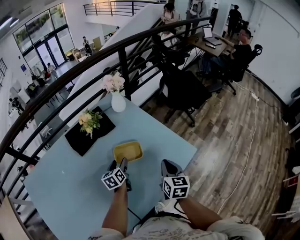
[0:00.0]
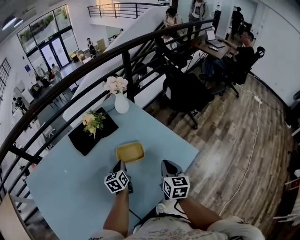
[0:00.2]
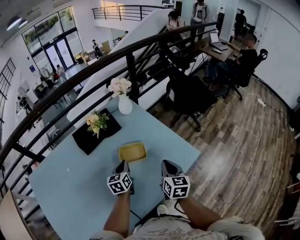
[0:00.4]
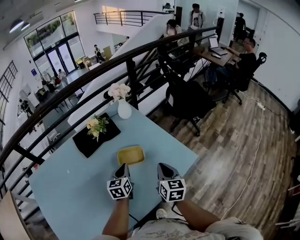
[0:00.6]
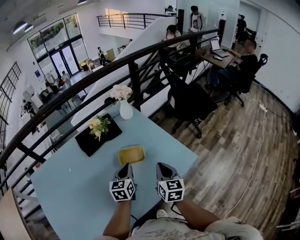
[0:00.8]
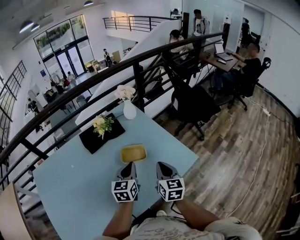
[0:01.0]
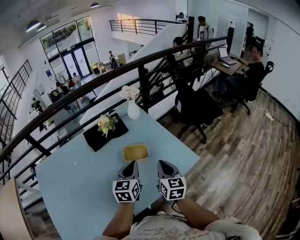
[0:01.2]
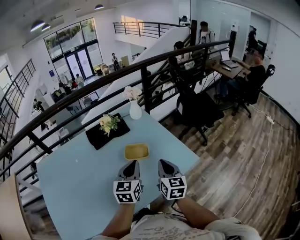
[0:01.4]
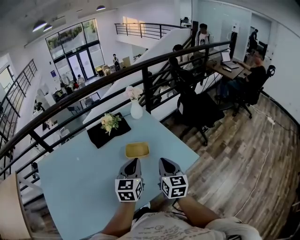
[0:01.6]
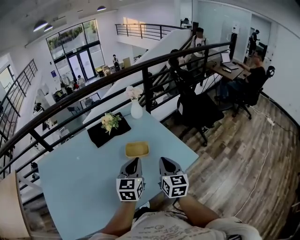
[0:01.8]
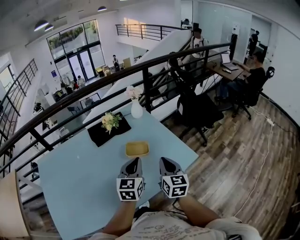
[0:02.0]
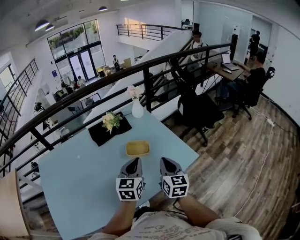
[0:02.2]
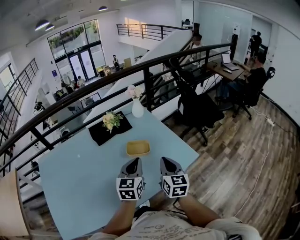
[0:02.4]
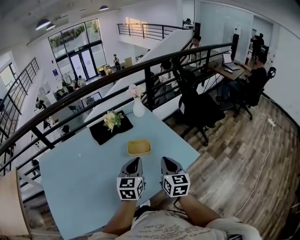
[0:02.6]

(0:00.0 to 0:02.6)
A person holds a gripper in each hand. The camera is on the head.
0:00.0 - 0:01.2: The left gripper moves upward, backward and to the right, roughly 25 cm, rotates some 30 degrees, and closes its fingers, while the right gripper travels upward by approximately 5 cm.
0:01.2 - 0:02.6: The left gripper travels backward by some 5 cm. Meanwhile the right gripper shifts by approximately 5 cm.

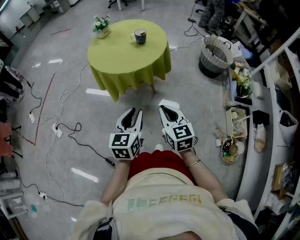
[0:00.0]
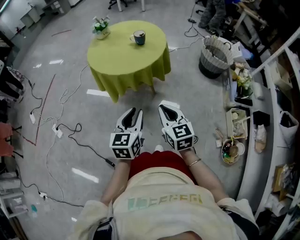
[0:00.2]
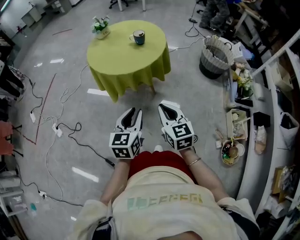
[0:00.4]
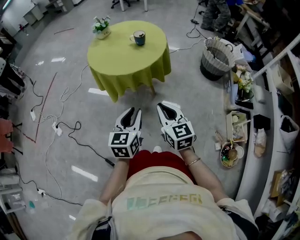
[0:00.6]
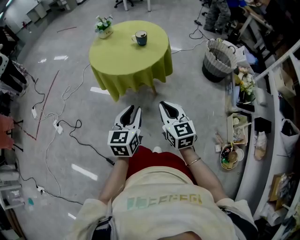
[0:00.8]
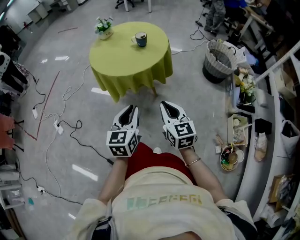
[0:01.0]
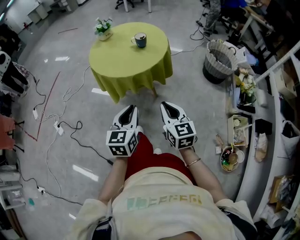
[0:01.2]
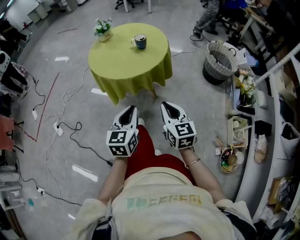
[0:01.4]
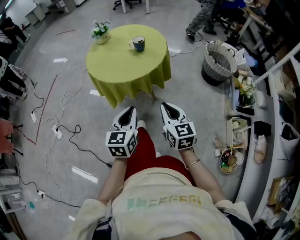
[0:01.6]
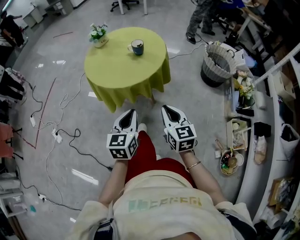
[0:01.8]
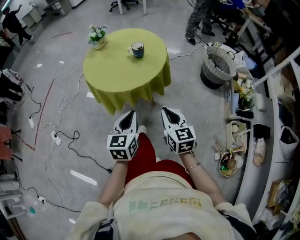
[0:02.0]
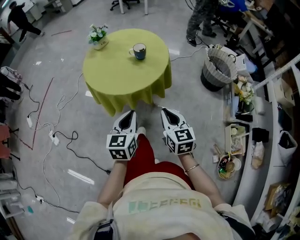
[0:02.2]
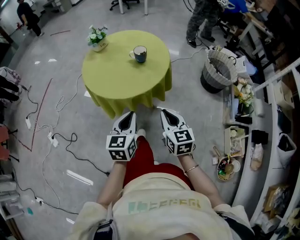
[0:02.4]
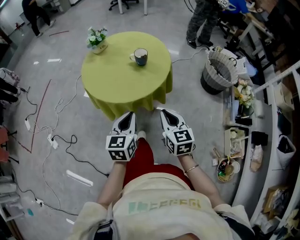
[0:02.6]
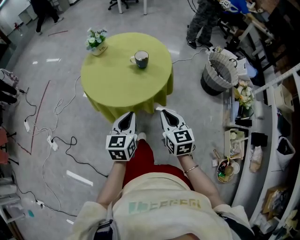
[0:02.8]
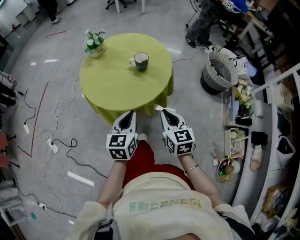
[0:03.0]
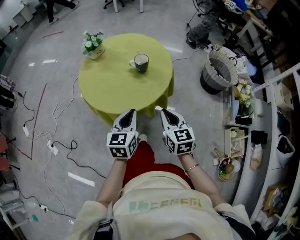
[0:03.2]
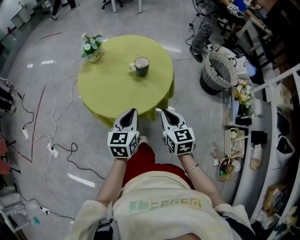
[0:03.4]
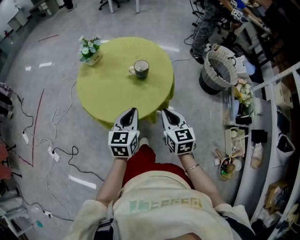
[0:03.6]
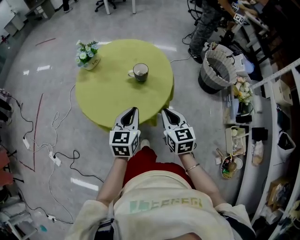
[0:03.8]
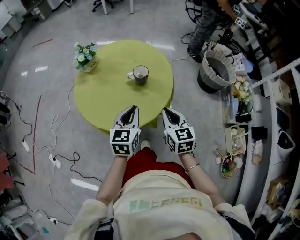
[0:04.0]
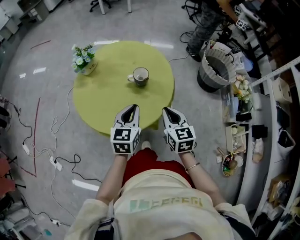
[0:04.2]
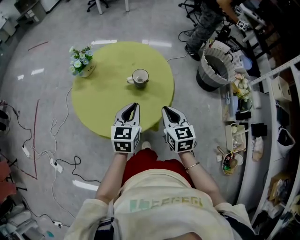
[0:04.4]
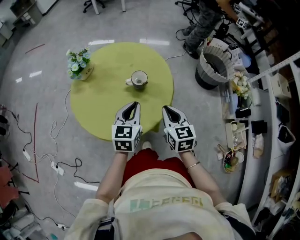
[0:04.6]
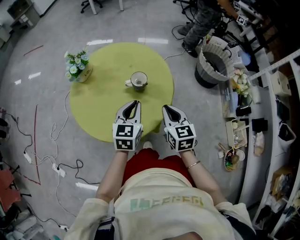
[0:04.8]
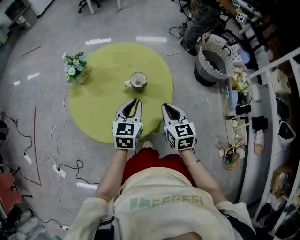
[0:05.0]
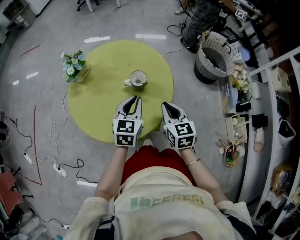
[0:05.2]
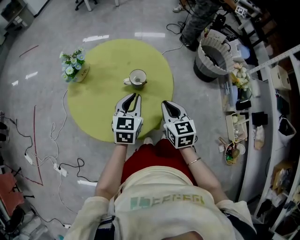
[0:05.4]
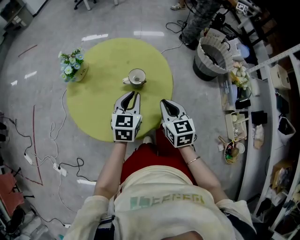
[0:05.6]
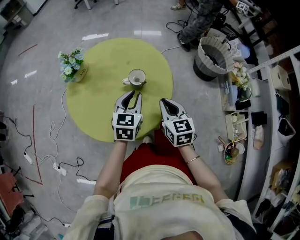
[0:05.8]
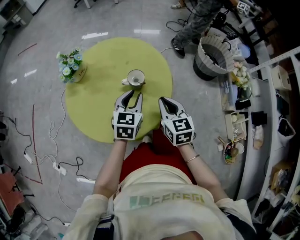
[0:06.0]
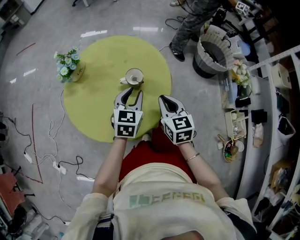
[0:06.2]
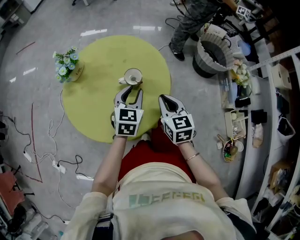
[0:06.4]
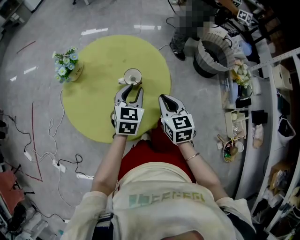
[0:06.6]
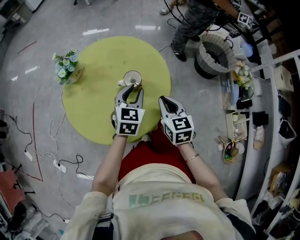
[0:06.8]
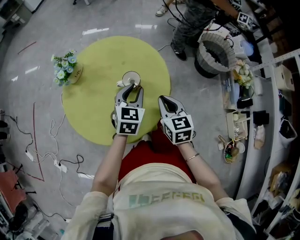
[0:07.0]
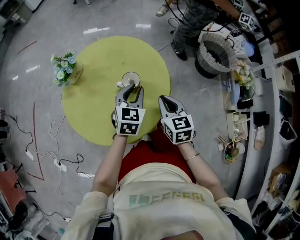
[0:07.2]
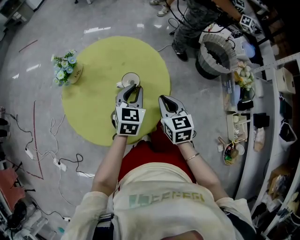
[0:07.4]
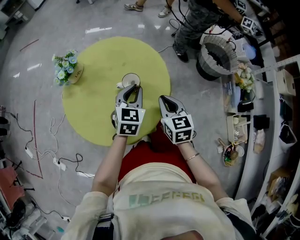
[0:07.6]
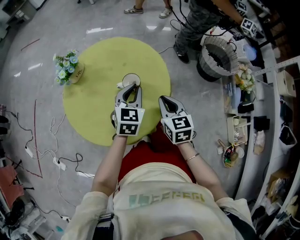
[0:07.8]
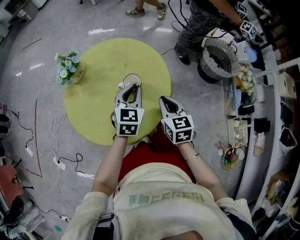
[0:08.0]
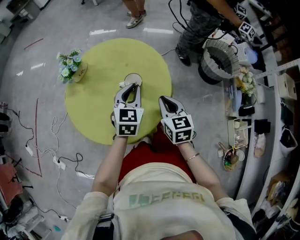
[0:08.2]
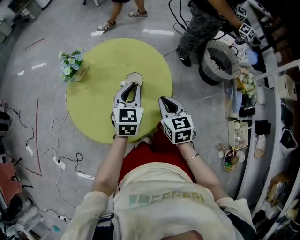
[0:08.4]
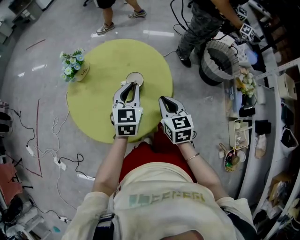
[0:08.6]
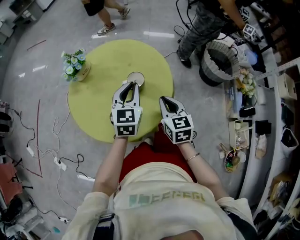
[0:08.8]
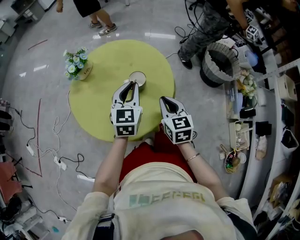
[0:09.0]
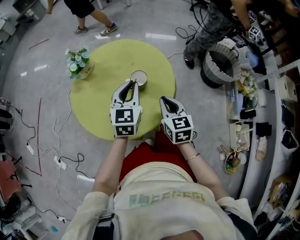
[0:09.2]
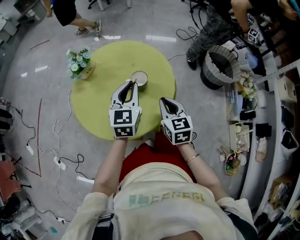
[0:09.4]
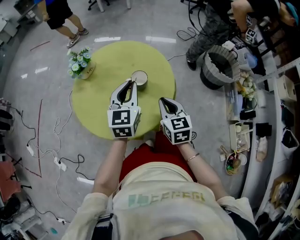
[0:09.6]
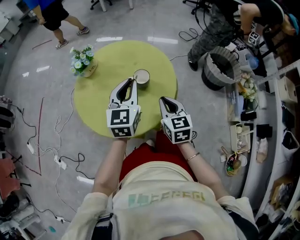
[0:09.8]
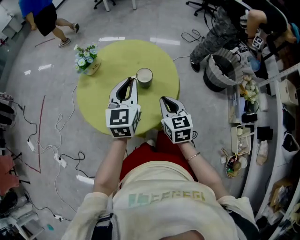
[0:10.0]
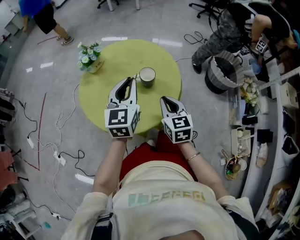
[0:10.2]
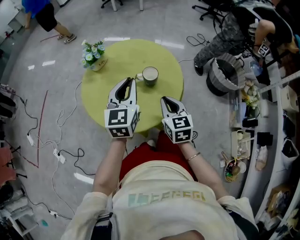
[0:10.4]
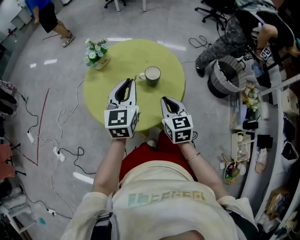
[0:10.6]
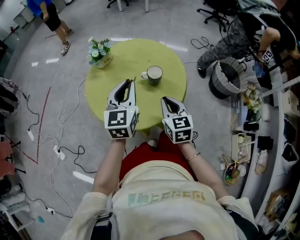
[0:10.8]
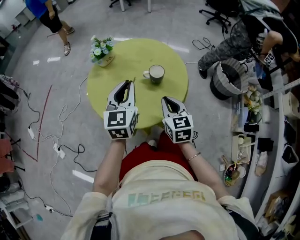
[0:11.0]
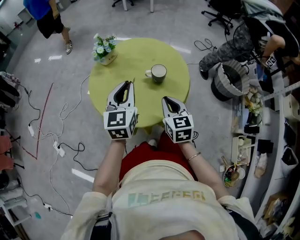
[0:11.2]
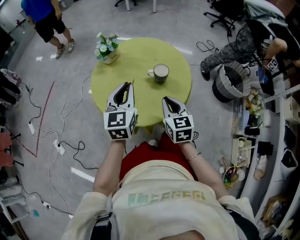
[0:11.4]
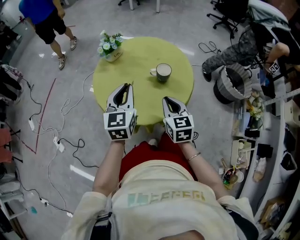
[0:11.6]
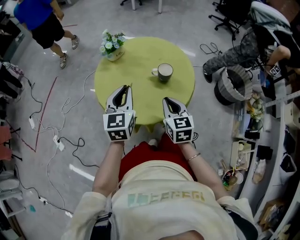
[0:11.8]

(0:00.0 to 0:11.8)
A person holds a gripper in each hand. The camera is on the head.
0:00.0 - 0:01.4: The right gripper heads to the right and forward, covering some 10 cm, while the left gripper shifts by approximately 5 cm.
0:01.4 - 0:03.0: The two grippers go roughly 20 cm forward.
0:03.0 - 0:04.4: Both grippers move forward, about 15 cm.
0:04.4 - 0:06.0: The two grippers go about 5 cm forward.
0:06.0 - 0:07.4: The left gripper moves some 5 cm, while the right gripper ends up some 5 cm from where it was.
0:07.4 - 0:08.8: The left gripper goes about 5 cm upward.
0:08.8 - 0:10.4: The left gripper travels upward, to the left and backward by approximately 10 cm, while the right gripper travels to the left by about 5 cm.
0:10.4 - 0:11.8: The left gripper goes some 10 cm to the left and backward, while the right gripper is displaced to the left by about 5 cm.

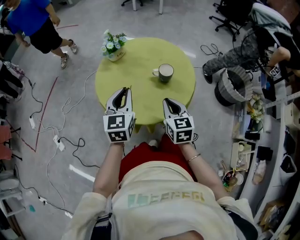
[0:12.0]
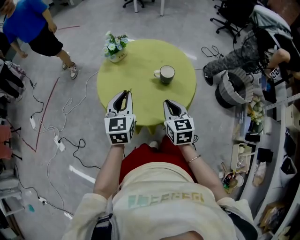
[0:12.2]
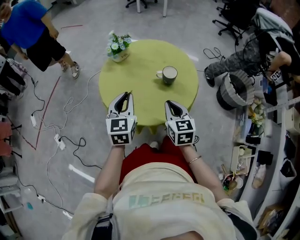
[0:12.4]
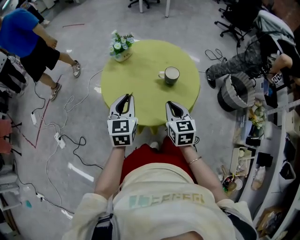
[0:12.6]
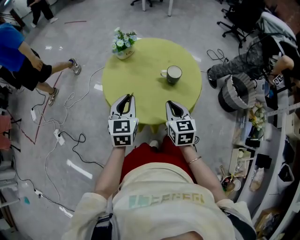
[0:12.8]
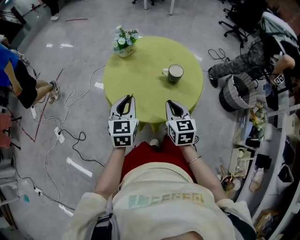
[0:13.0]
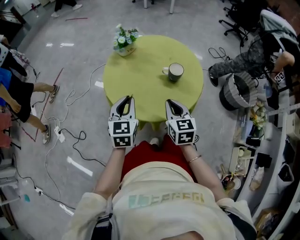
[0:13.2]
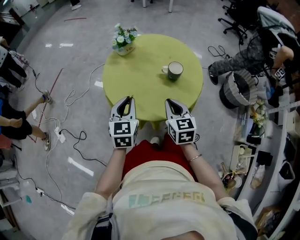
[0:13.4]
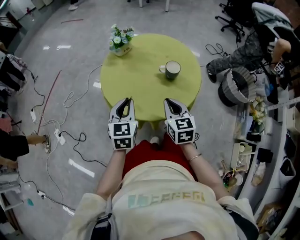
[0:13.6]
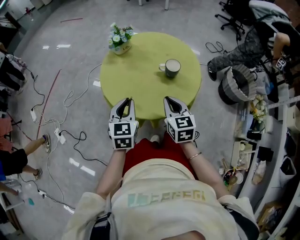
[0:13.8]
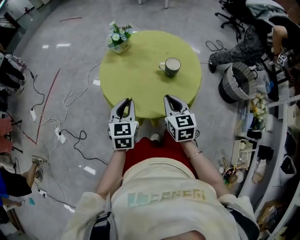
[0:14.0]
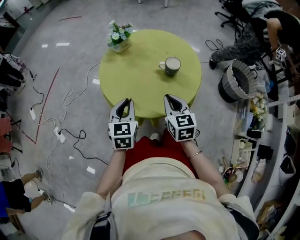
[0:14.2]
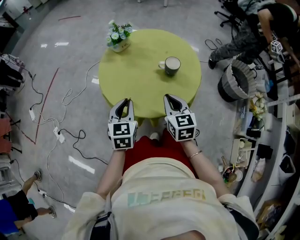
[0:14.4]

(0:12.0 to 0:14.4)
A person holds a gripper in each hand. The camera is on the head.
0:12.0 - 0:13.2: The left gripper shifts by some 5 cm.
0:13.2 - 0:14.4: The grippers make only small movements.

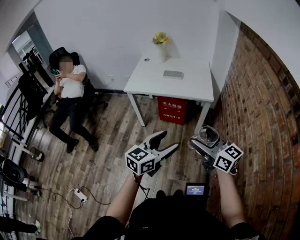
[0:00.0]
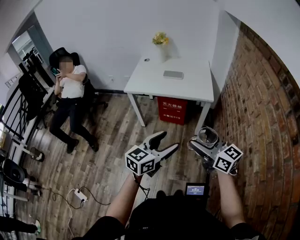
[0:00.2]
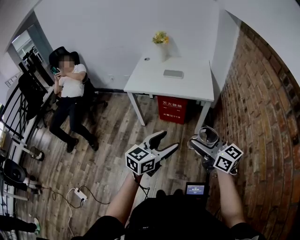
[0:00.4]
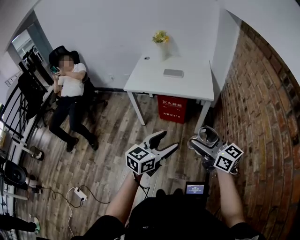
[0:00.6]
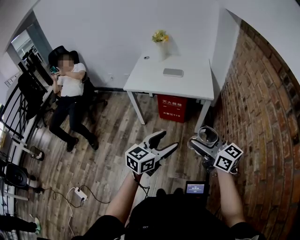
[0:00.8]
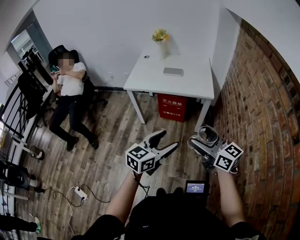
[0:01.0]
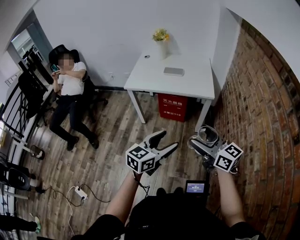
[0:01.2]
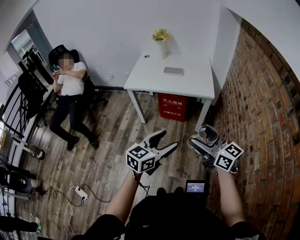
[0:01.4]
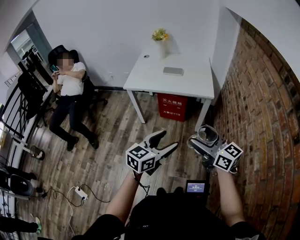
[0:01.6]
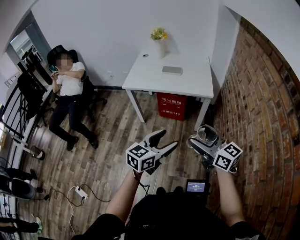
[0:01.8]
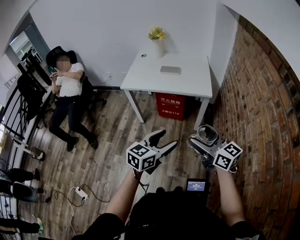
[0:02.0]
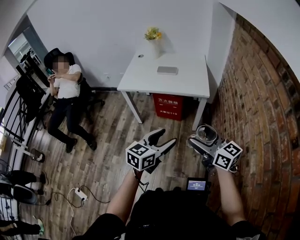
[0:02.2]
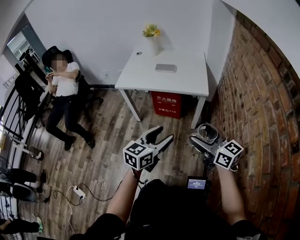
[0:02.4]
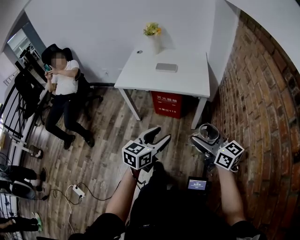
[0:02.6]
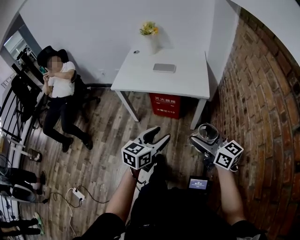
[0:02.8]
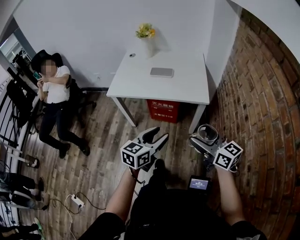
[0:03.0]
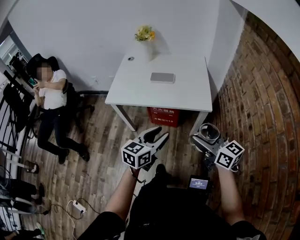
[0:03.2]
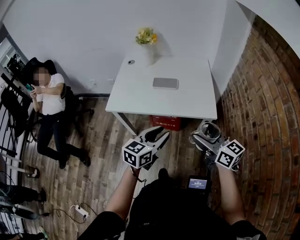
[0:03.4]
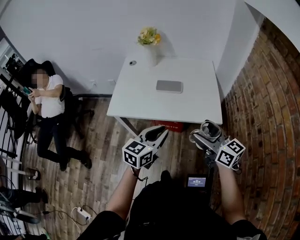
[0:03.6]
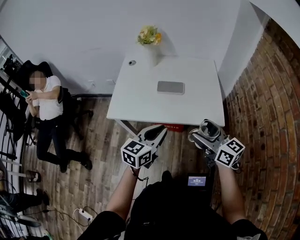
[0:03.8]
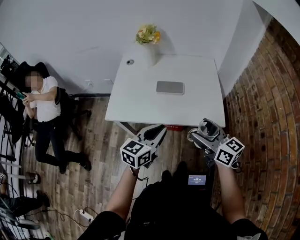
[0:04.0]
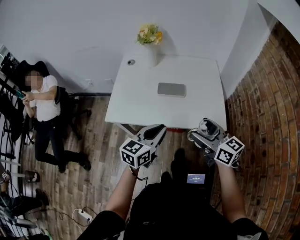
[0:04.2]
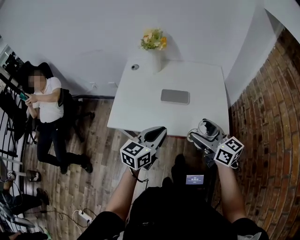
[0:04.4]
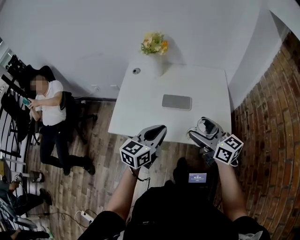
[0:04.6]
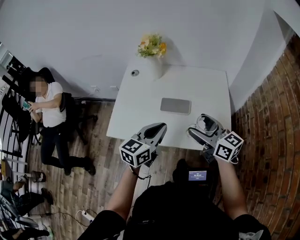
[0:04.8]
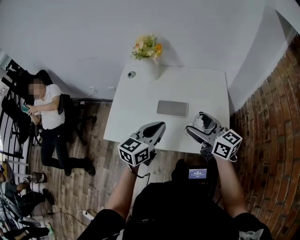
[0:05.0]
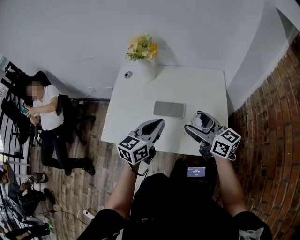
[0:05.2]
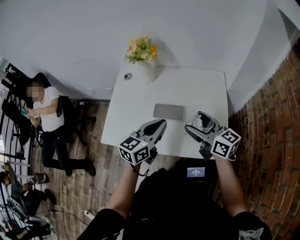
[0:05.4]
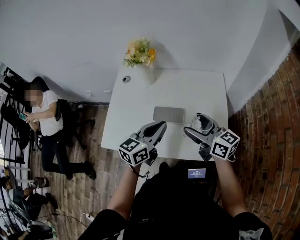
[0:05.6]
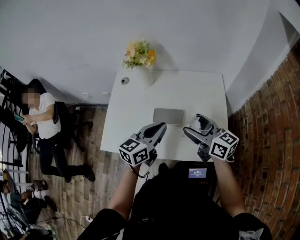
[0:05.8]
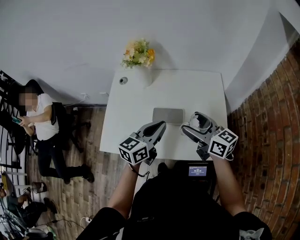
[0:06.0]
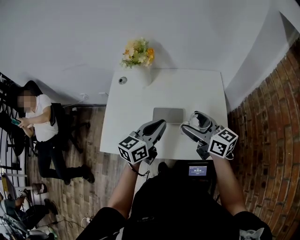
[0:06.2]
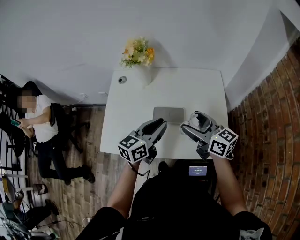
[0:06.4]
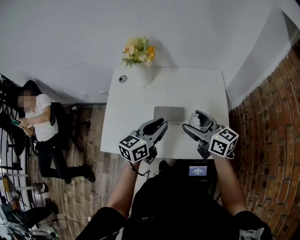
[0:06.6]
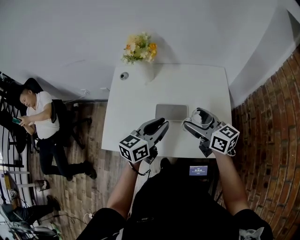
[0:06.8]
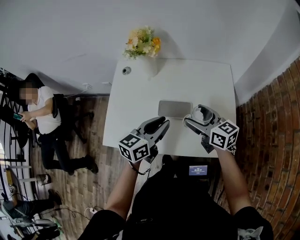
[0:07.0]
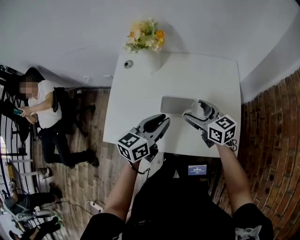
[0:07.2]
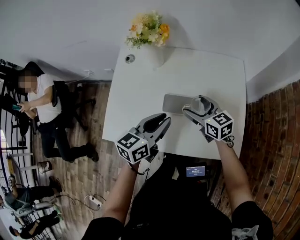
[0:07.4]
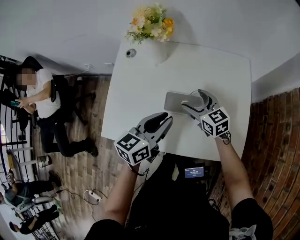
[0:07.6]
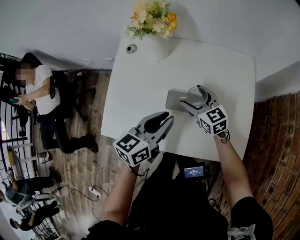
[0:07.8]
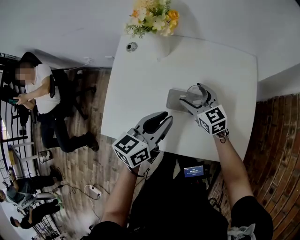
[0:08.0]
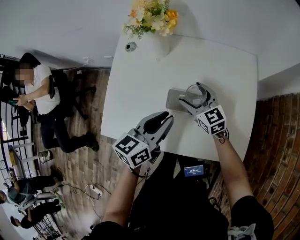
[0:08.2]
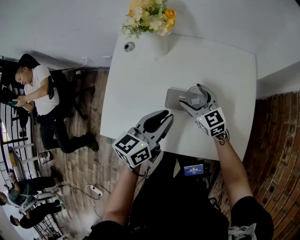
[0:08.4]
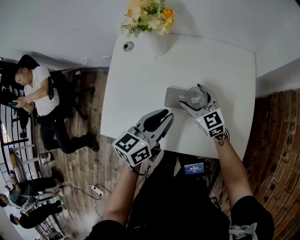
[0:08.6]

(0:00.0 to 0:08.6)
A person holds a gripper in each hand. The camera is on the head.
0:00.0 - 0:01.4: The grippers make only small movements.
0:01.4 - 0:02.8: The right gripper travels forward and to the right by about 10 cm; the left gripper moves forward, roughly 10 cm.
0:02.8 - 0:04.4: The two grippers go about 35 cm forward. The left gripper closes.
0:04.4 - 0:05.8: Both grippers move forward, about 20 cm.
0:05.8 - 0:07.2: The right gripper is displaced downward by roughly 5 cm.
0:07.2 - 0:08.6: The right gripper is displaced downward, forward and to the left by some 15 cm, and swivels about 20 degrees, while the left gripper moves about 5 cm.
